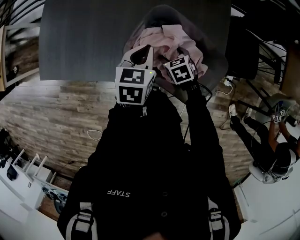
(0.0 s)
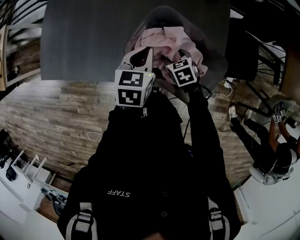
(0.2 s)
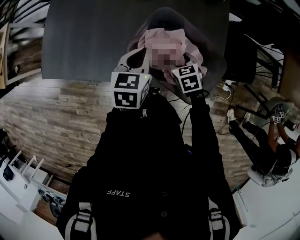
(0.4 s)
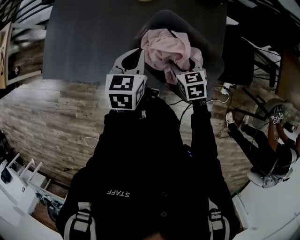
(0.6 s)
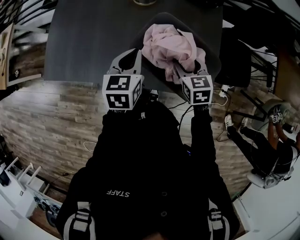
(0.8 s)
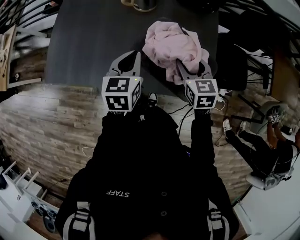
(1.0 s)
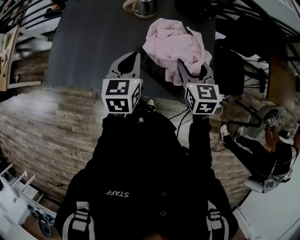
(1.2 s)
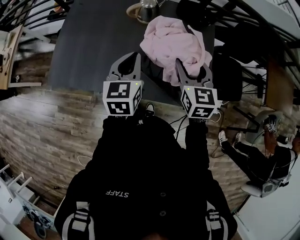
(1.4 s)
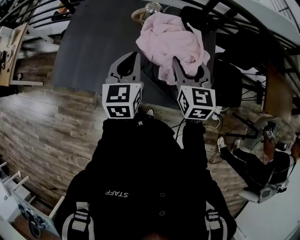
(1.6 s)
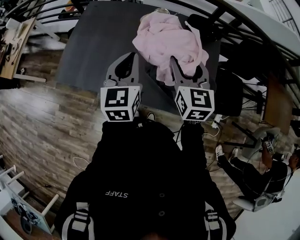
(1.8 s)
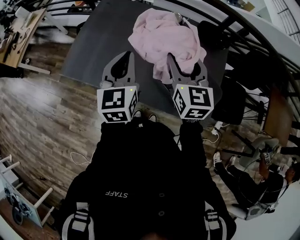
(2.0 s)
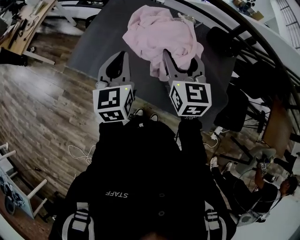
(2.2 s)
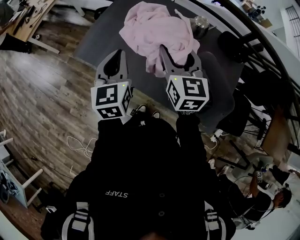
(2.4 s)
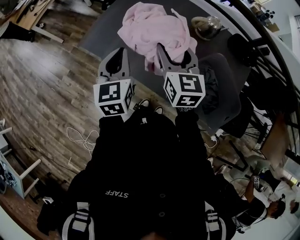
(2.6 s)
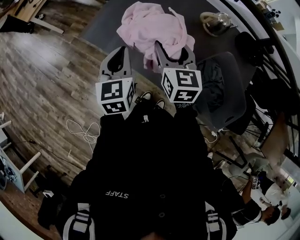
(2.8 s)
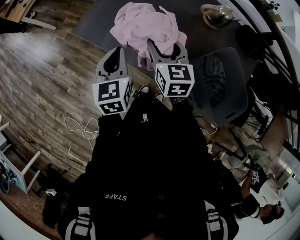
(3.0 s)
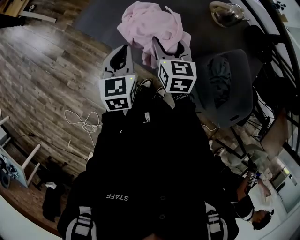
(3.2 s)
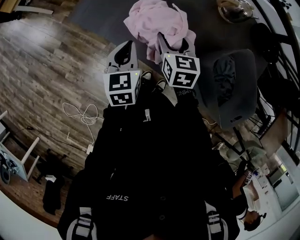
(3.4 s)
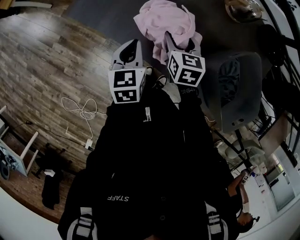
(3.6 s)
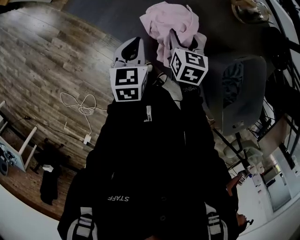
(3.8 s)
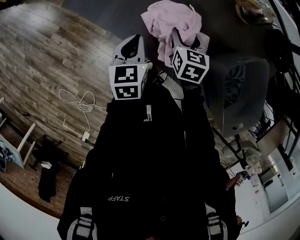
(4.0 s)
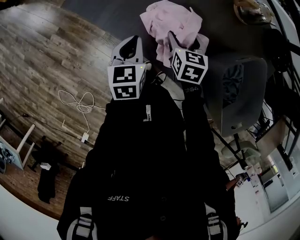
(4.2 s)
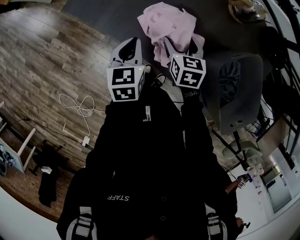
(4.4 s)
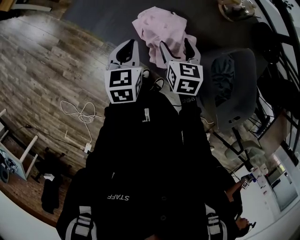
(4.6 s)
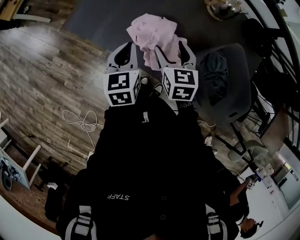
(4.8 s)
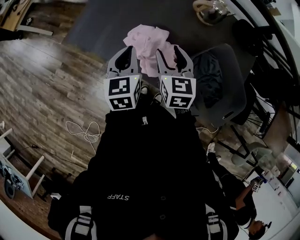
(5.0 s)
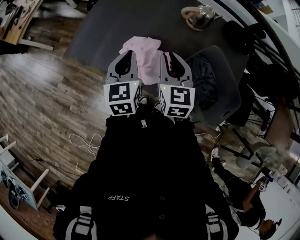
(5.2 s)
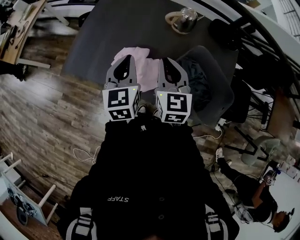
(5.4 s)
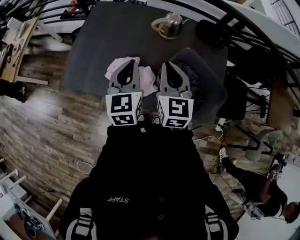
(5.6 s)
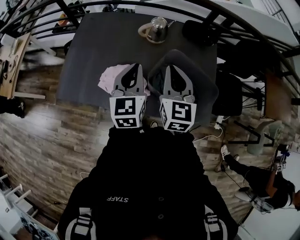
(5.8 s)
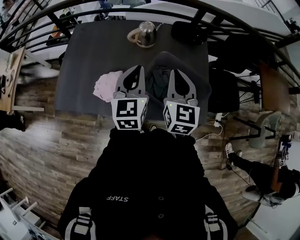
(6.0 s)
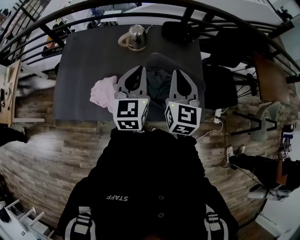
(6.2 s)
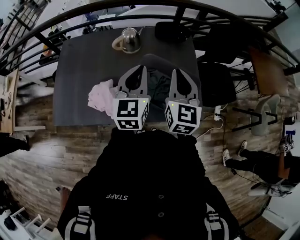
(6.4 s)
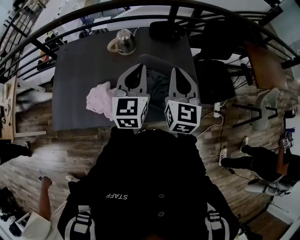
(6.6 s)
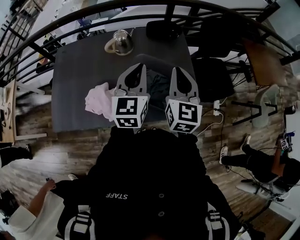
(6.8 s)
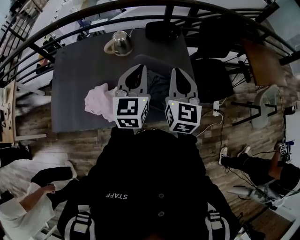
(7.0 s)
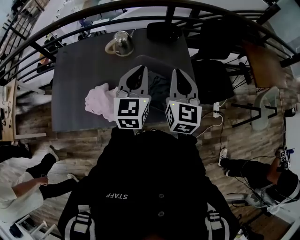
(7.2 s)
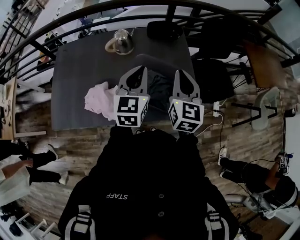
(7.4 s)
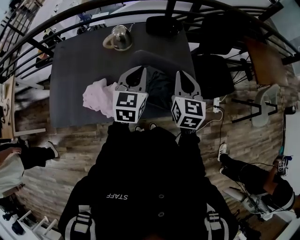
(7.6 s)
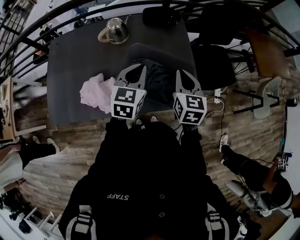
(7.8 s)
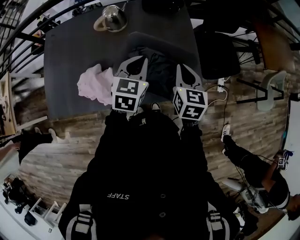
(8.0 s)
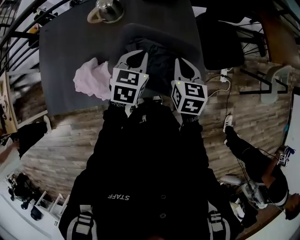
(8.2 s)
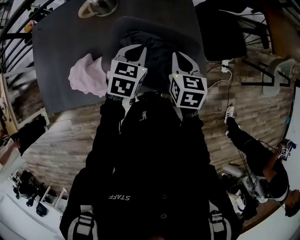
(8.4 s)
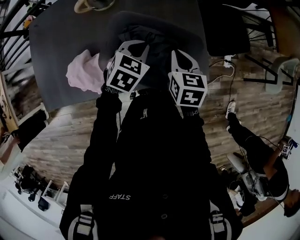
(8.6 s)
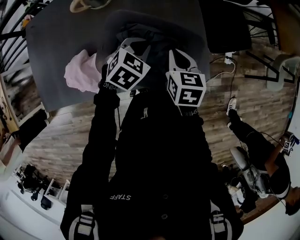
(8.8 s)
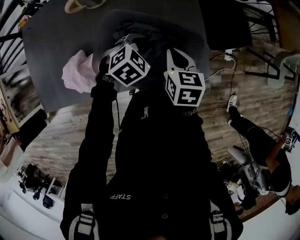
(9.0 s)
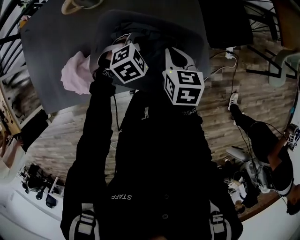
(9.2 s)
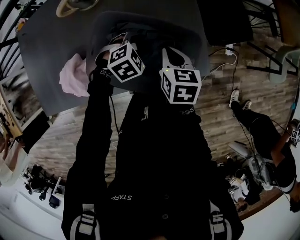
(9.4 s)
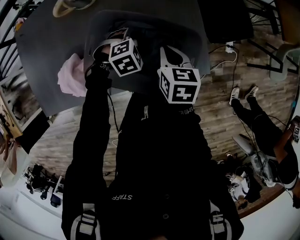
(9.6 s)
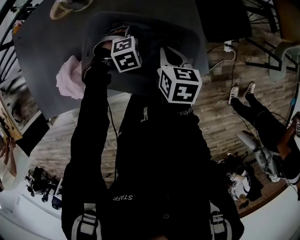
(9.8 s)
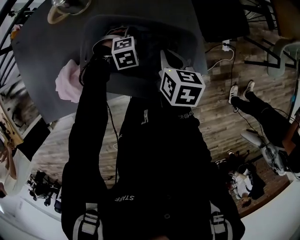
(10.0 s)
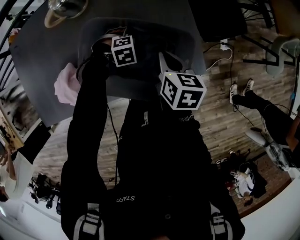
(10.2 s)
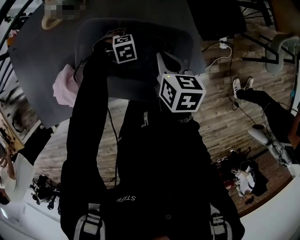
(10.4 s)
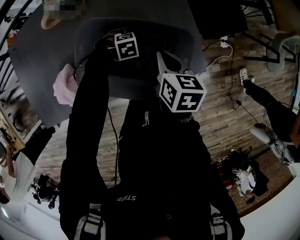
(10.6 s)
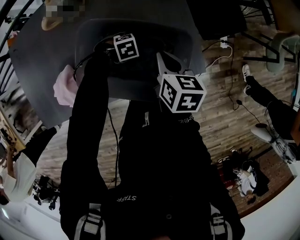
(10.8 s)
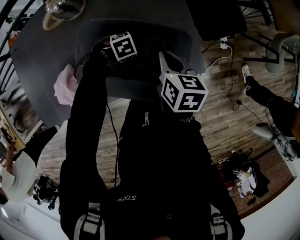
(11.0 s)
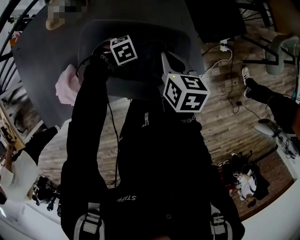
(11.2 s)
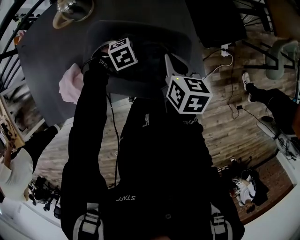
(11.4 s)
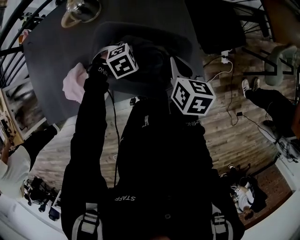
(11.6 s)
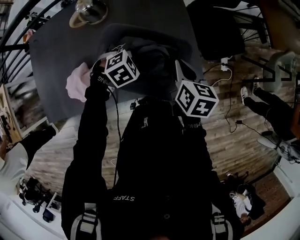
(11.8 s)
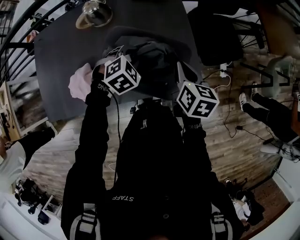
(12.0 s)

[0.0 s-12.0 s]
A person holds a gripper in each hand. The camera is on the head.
0.0 to 1.6 s: The left gripper moves upward and to the left, about 20 cm, and rotates roughly 30 degrees. Meanwhile the right gripper is displaced upward by about 35 cm, and angles its fingers upward, by some 40 degrees.
1.6 to 3.0 s: The left gripper shifts by approximately 35 cm, and swivels roughly 30 degrees, while the right gripper ends up some 35 cm from where it was, and swivels some 30 degrees.
3.0 to 4.4 s: The two grippers go roughly 15 cm downward. The right gripper turns by approximately 20 degrees.
4.4 to 6.0 s: Both grippers travel together upward, about 30 cm. The right gripper tilts its fingers approximately 30 degrees upward, and closes up; the left gripper turns by roughly 40 degrees.
6.0 to 7.6 s: Both grippers move to the right, roughly 15 cm. The left gripper swivels about 20 degrees.
7.6 to 9.0 s: The grippers both shift downward by approximately 25 cm. The left gripper angles its fingers downward, by approximately 40 degrees; the right gripper turns by roughly 30 degrees.
9.0 to 10.4 s: The left gripper travels downward by about 20 cm, turns by roughly 40 degrees, and opens its fingers.
10.4 to 12.0 s: The right gripper moves upward, about 10 cm. The left gripper heads upward, covering roughly 25 cm, turns by about 40 degrees, and closes up.

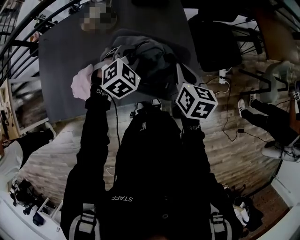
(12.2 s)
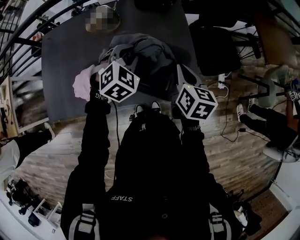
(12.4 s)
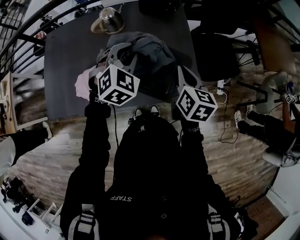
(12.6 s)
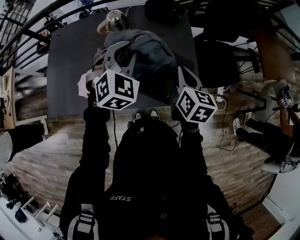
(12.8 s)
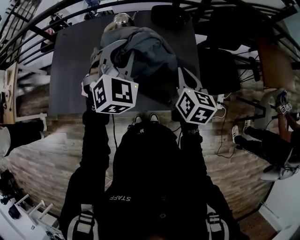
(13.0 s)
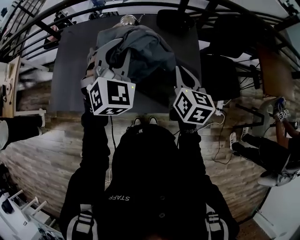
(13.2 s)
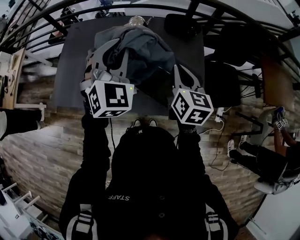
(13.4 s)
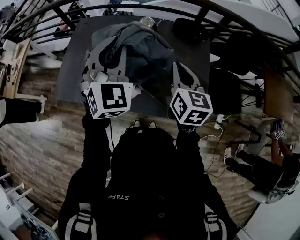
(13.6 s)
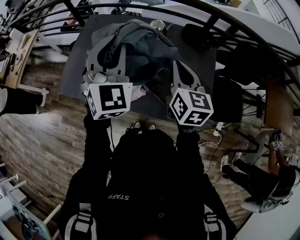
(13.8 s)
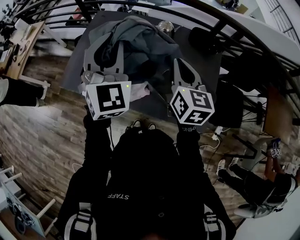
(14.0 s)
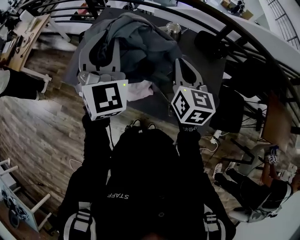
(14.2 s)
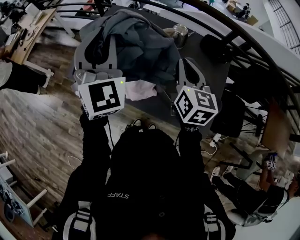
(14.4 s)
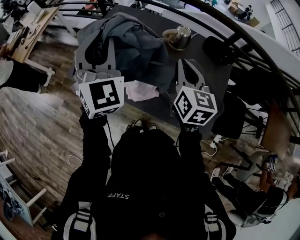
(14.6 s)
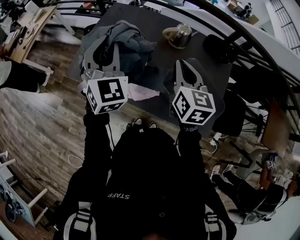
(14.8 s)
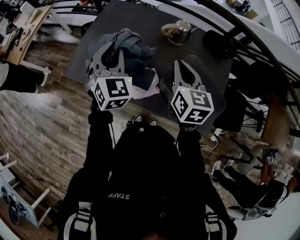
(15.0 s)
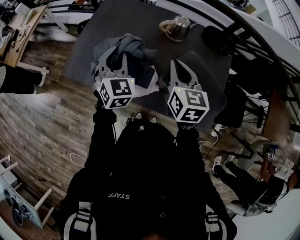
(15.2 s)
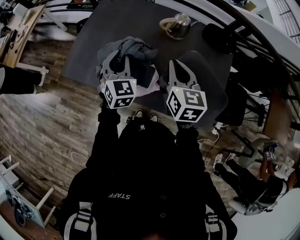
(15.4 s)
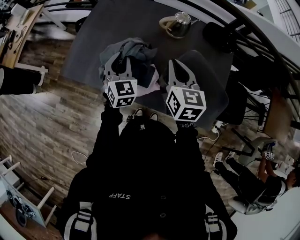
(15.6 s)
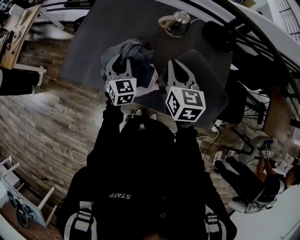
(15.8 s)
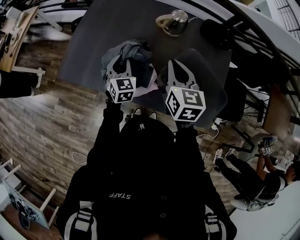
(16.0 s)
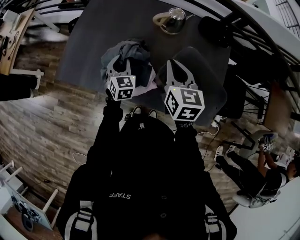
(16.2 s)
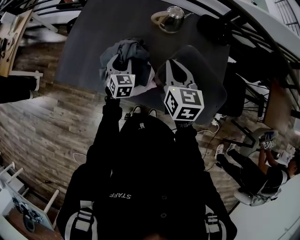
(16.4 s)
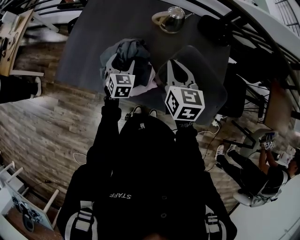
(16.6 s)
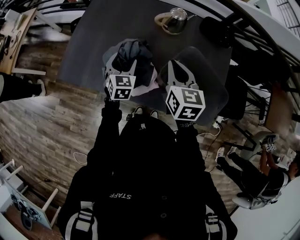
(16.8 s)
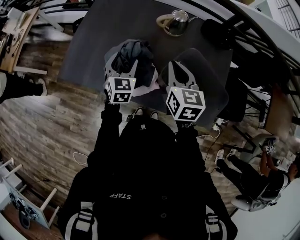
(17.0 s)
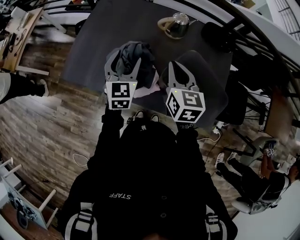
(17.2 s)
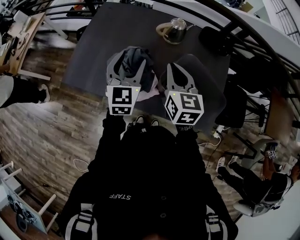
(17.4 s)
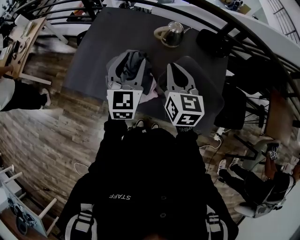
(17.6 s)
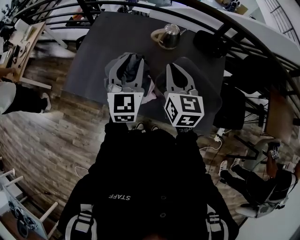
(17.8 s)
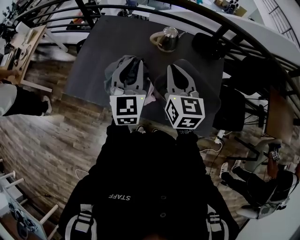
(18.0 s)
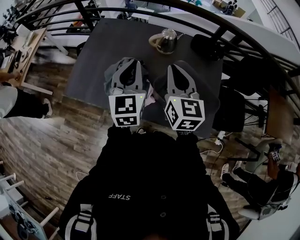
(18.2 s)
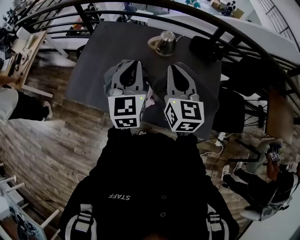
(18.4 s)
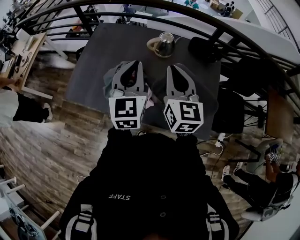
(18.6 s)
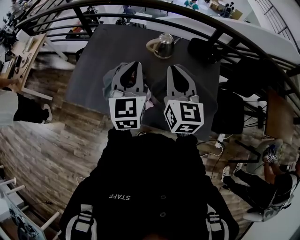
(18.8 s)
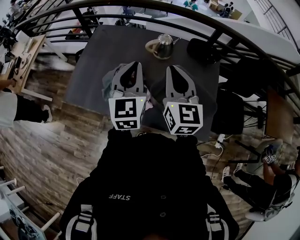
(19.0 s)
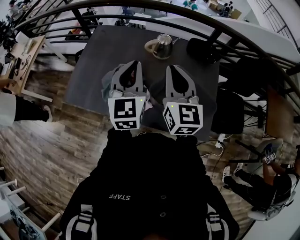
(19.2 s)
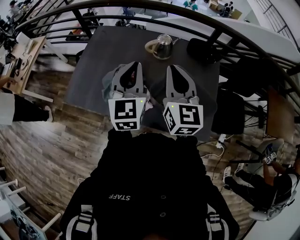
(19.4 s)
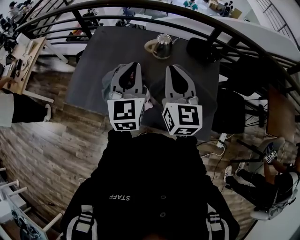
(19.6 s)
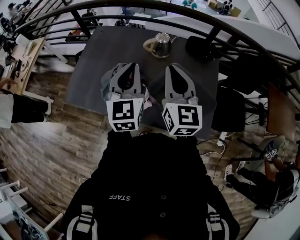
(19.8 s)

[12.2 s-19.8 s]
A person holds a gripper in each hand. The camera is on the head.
12.2 to 13.8 s: The left gripper goes some 30 cm upward, and tips its fingers upward by about 50 degrees. The right gripper changes place by roughly 25 cm, and swivels some 30 degrees.
13.8 to 15.2 s: The left gripper goes approximately 20 cm downward and to the left, and swivels roughly 20 degrees. The right gripper goes approximately 15 cm to the left and downward.
15.2 to 16.8 s: The right gripper heads downward, covering approximately 5 cm. Meanwhile the left gripper heads downward, covering approximately 15 cm, and opens its fingers.
16.8 to 18.2 s: The left gripper heads upward, covering roughly 25 cm, rotates some 20 degrees, and closes its fingers. Meanwhile the right gripper shifts about 10 cm upward.
18.2 to 19.8 s: There are only small adjustments of the grippers.

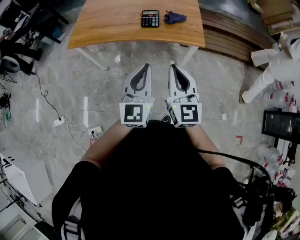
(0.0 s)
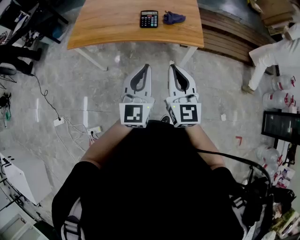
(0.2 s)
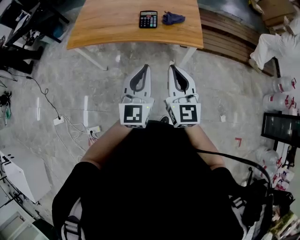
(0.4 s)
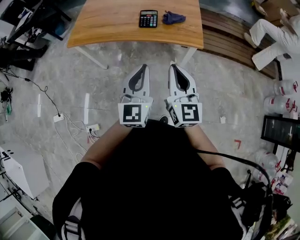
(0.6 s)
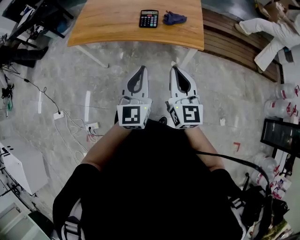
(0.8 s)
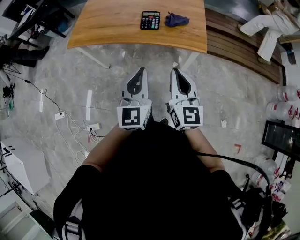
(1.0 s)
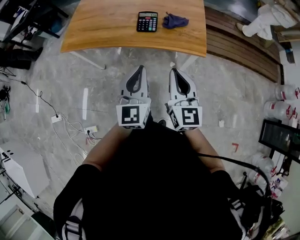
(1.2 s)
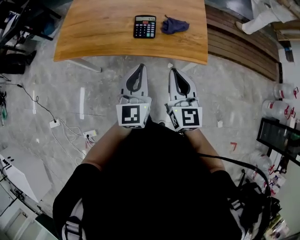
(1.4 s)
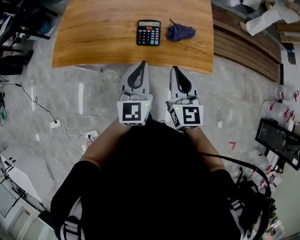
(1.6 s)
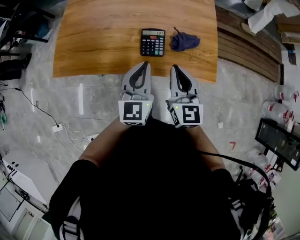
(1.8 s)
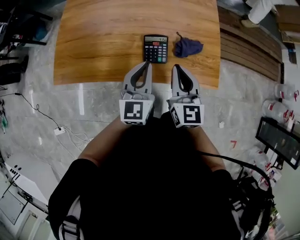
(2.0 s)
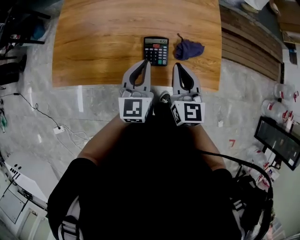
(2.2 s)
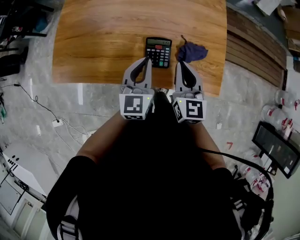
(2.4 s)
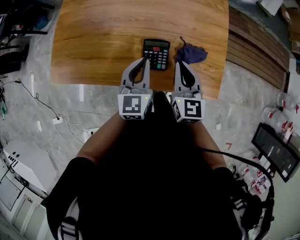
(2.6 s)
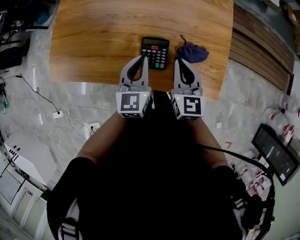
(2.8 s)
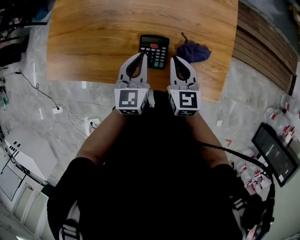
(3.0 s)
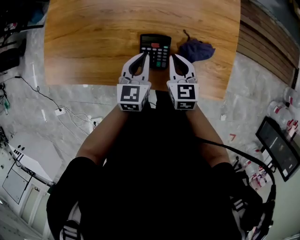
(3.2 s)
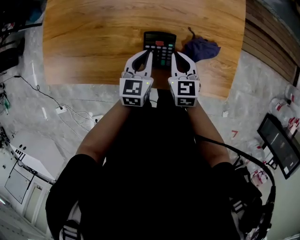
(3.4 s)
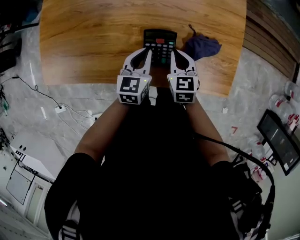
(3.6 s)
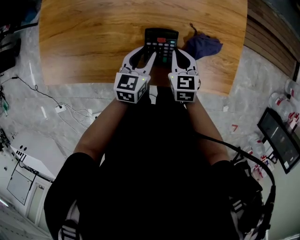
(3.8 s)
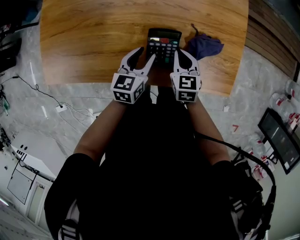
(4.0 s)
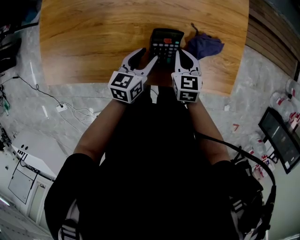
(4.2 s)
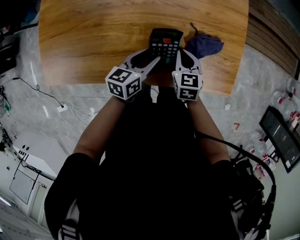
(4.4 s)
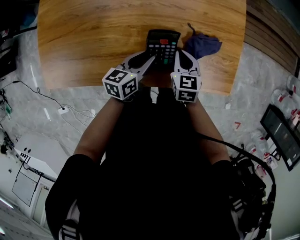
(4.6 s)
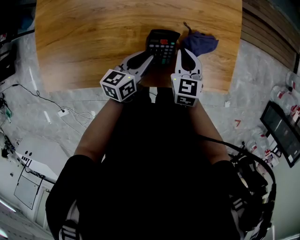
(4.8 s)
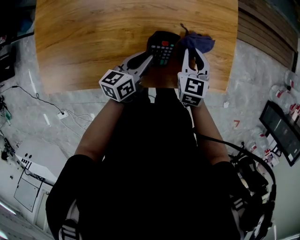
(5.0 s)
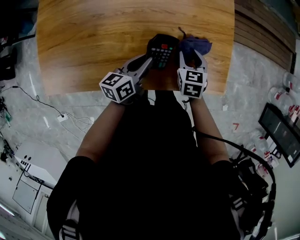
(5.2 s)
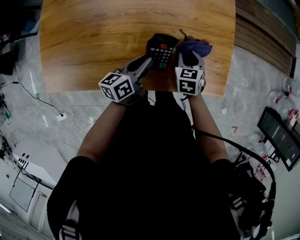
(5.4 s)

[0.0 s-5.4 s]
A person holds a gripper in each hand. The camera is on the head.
0.0 to 1.4 s: The two grippers go about 20 cm forward.
1.4 to 2.8 s: The two grippers go roughly 30 cm forward.
2.8 to 4.0 s: Both grippers travel together downward, roughly 15 cm. The left gripper turns by approximately 30 degrees, and opens up, while the right gripper turns by some 20 degrees.
4.0 to 5.4 s: The right gripper goes about 5 cm to the right, and opens its fingers. The left gripper rotates roughly 30 degrees, and closes its fingers.
